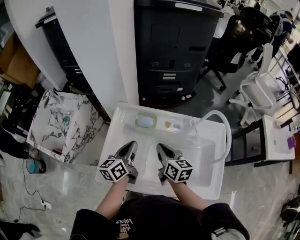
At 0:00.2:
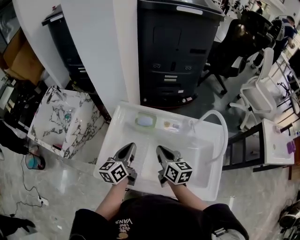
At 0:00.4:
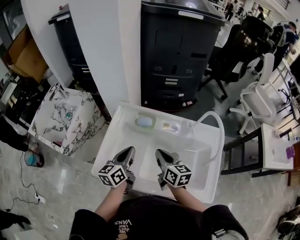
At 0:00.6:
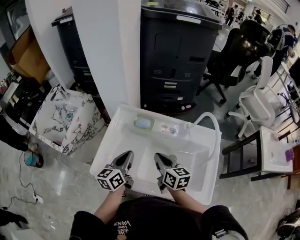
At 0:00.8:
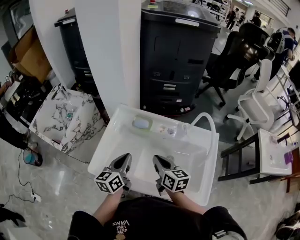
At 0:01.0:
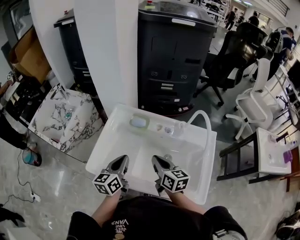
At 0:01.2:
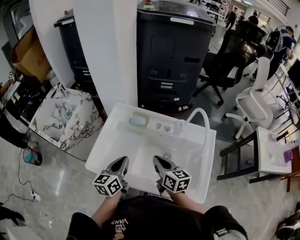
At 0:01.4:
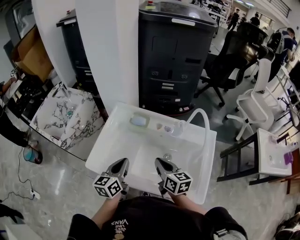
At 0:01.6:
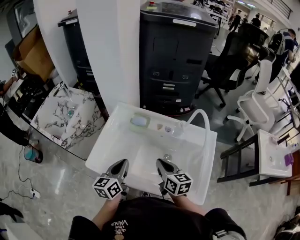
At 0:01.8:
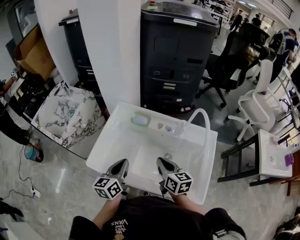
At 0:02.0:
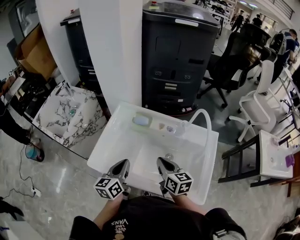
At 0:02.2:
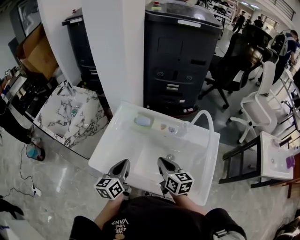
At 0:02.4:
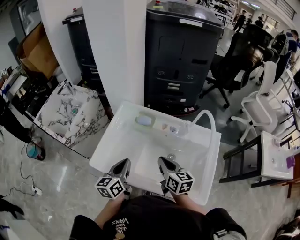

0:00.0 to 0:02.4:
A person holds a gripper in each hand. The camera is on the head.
0:00.0 to 0:01.2: The two grippers go approximately 10 cm backward.
0:01.2 to 0:02.4: There are only small adjustments of the grippers.

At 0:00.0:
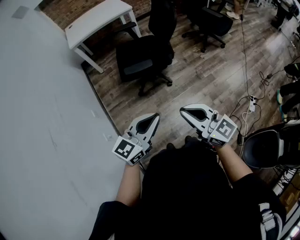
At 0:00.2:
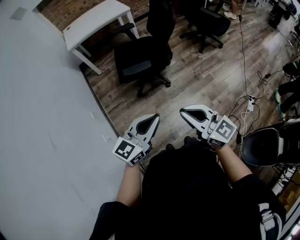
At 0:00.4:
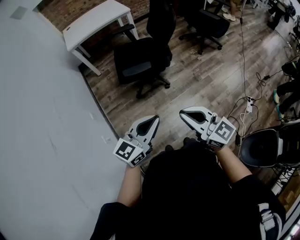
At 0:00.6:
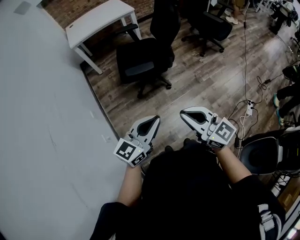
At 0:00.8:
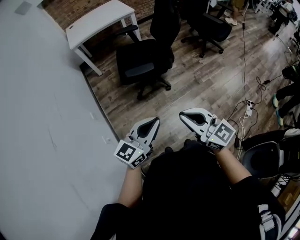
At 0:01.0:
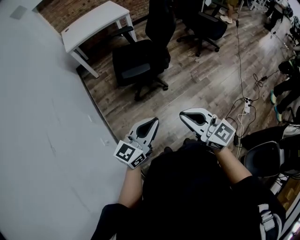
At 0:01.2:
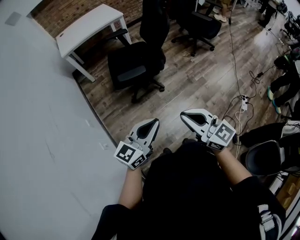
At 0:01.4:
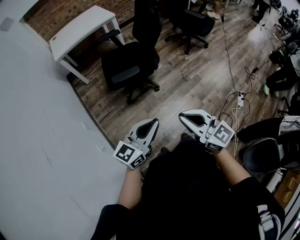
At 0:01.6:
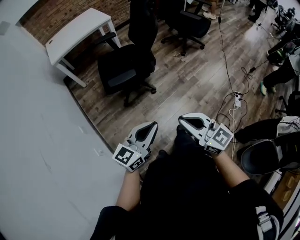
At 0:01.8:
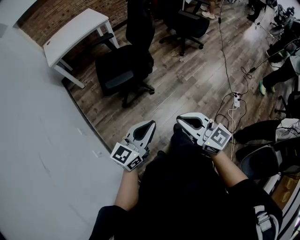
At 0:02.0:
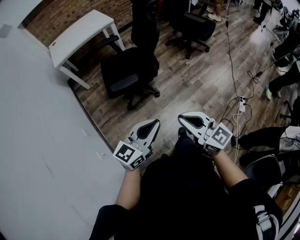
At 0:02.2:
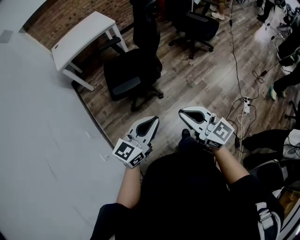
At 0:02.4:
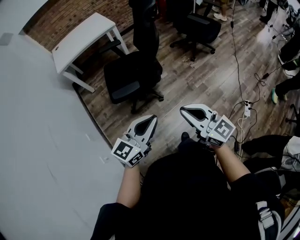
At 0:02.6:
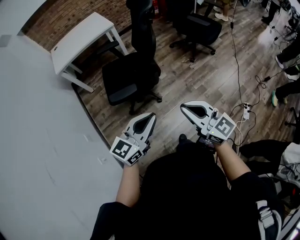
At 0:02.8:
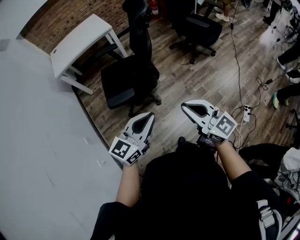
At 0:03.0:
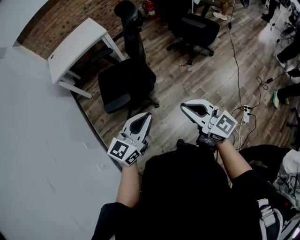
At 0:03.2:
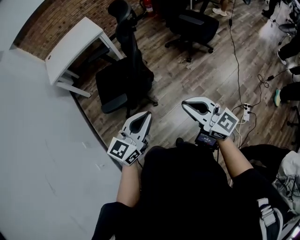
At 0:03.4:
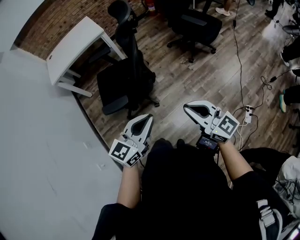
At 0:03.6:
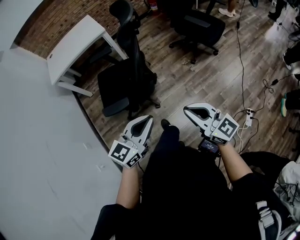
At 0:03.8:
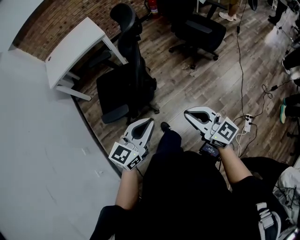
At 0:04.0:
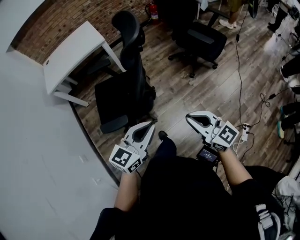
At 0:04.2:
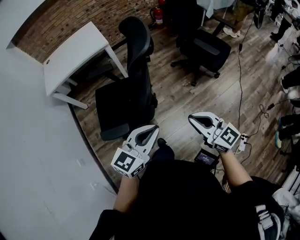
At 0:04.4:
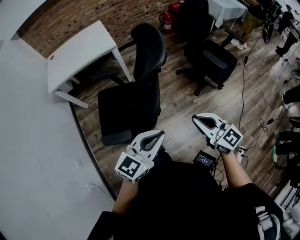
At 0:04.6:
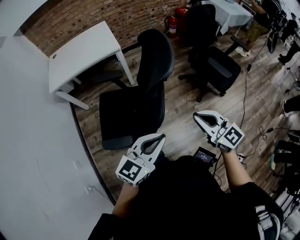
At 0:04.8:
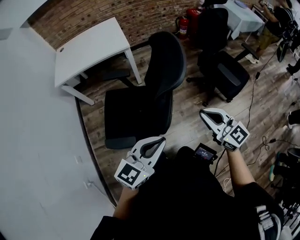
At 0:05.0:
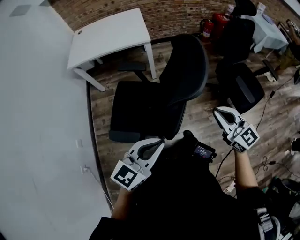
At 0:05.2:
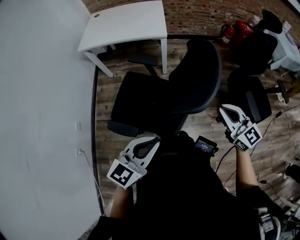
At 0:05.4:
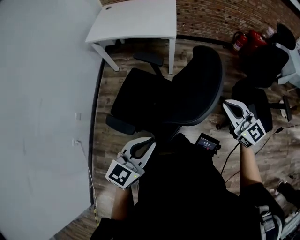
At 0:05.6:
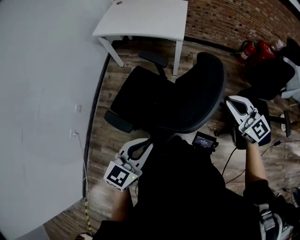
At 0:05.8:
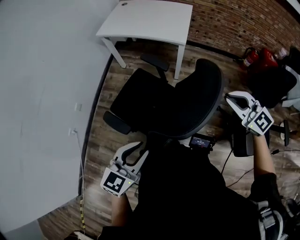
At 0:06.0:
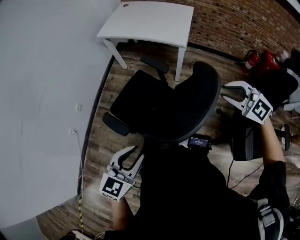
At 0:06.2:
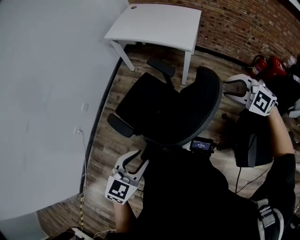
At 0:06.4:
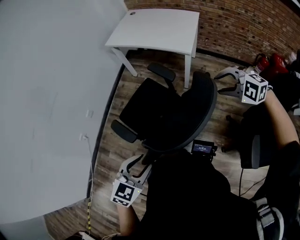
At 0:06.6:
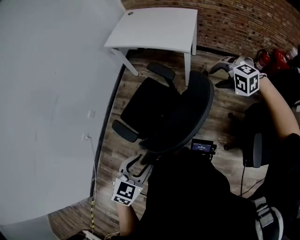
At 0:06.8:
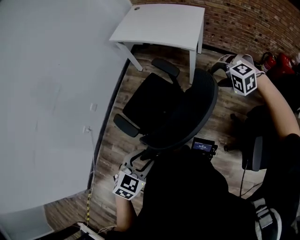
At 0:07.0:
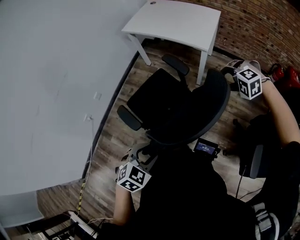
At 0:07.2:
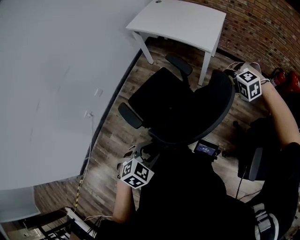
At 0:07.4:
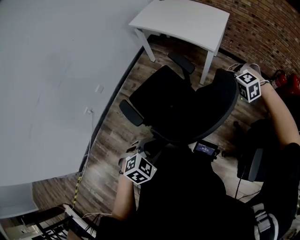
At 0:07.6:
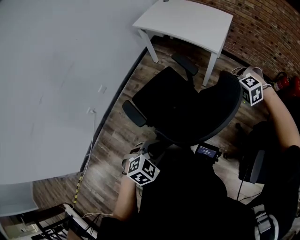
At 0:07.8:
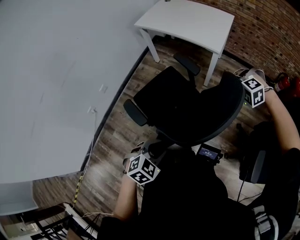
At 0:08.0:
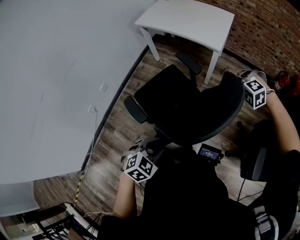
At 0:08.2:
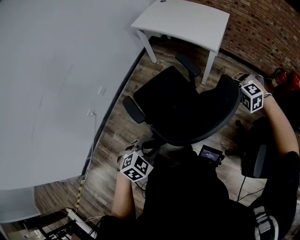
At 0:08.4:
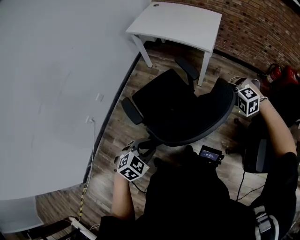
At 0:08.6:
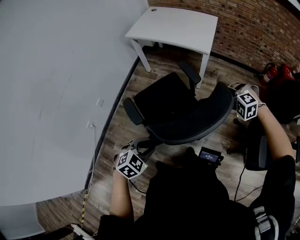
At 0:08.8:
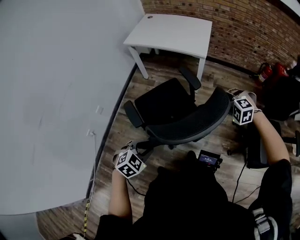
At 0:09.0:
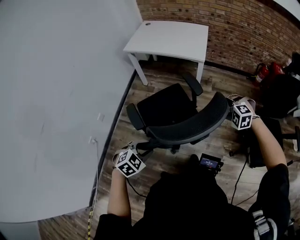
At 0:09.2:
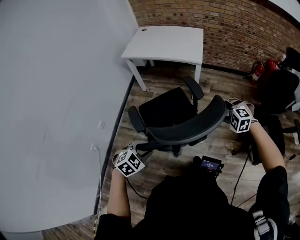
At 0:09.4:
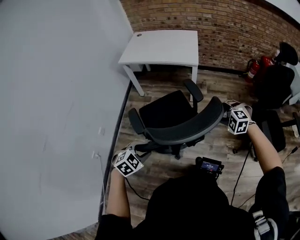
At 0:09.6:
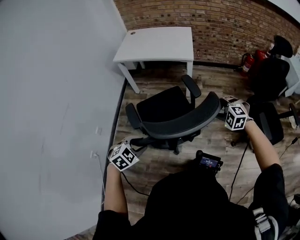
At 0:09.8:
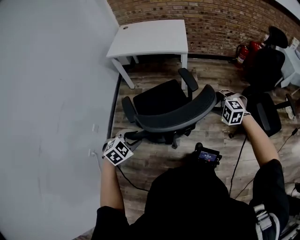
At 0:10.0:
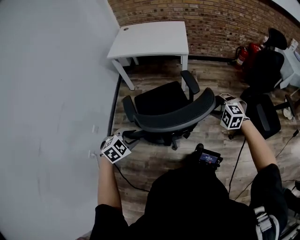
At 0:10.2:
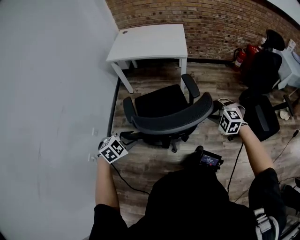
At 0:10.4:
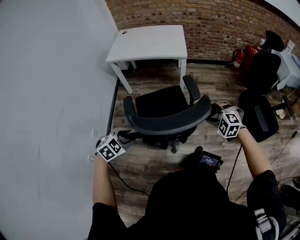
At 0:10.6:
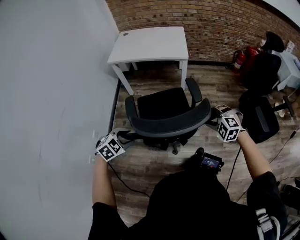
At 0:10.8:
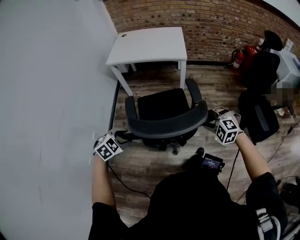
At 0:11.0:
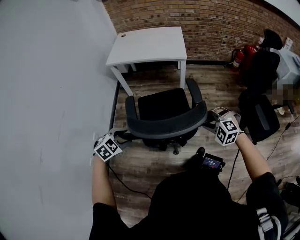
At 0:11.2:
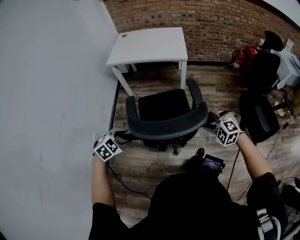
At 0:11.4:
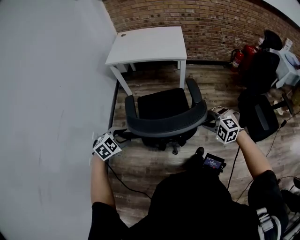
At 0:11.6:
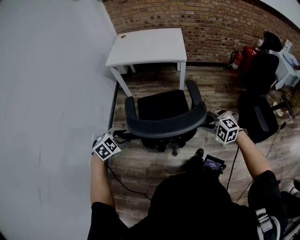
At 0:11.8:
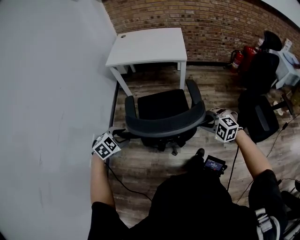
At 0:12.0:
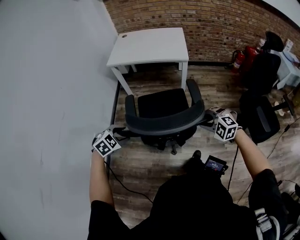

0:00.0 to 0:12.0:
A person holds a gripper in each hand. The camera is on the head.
0:00.0 to 0:01.6: There are only small adjustments of the grippers.
0:01.6 to 0:03.0: The grippers both shift forward and to the right by approximately 30 cm.
0:03.0 to 0:04.4: The grippers both shift forward by about 30 cm.
0:04.4 to 0:06.0: The right gripper moves roughly 50 cm, changes its angle by roughly 70 degrees, and opens up. Meanwhile the left gripper shifts by roughly 15 cm, and changes its angle by some 60 degrees.
0:06.0 to 0:07.6: The right gripper is displaced downward and forward by roughly 15 cm, and points its fingers some 40 degrees further downward. The left gripper goes roughly 10 cm downward and to the right, and angles its fingers downward, by roughly 30 degrees.
0:07.6 to 0:09.0: The right gripper travels backward and to the left by approximately 15 cm, and turns by some 30 degrees, while the left gripper travels to the left by about 20 cm.
0:09.0 to 0:10.4: The right gripper is displaced backward and to the left by some 15 cm, and swivels roughly 20 degrees. Meanwhile the left gripper heads to the left, covering roughly 15 cm.
0:10.4 to 0:12.0: The left gripper heads forward and to the left, covering approximately 10 cm; the right gripper shifts roughly 5 cm to the left.

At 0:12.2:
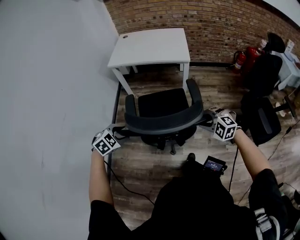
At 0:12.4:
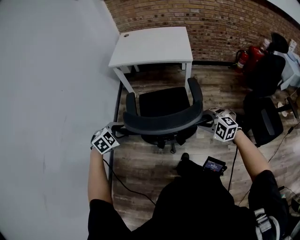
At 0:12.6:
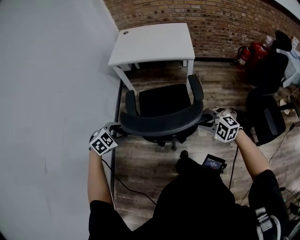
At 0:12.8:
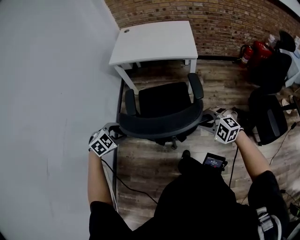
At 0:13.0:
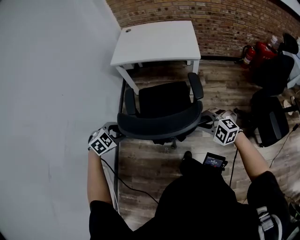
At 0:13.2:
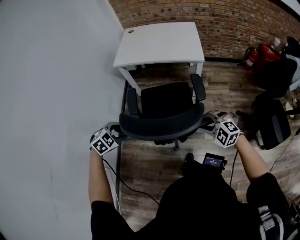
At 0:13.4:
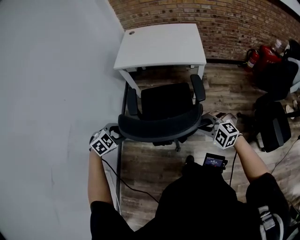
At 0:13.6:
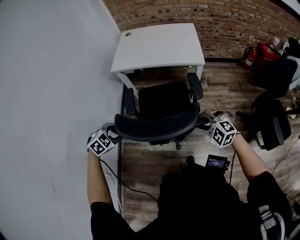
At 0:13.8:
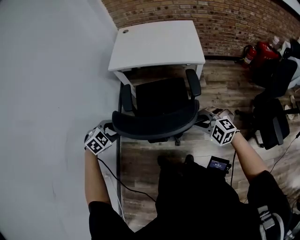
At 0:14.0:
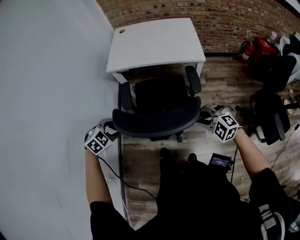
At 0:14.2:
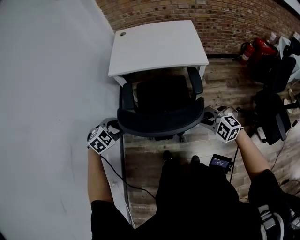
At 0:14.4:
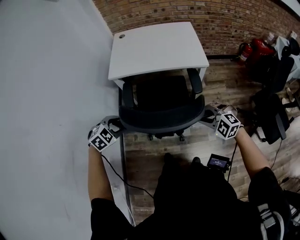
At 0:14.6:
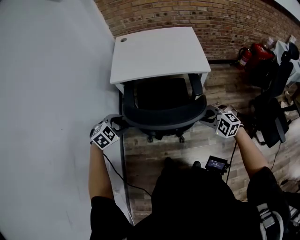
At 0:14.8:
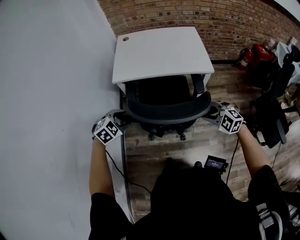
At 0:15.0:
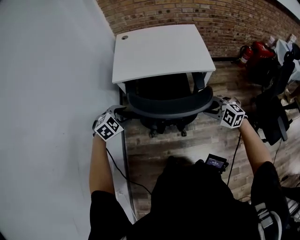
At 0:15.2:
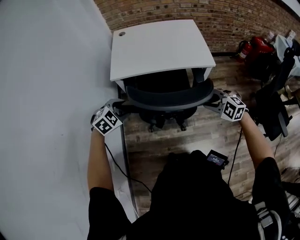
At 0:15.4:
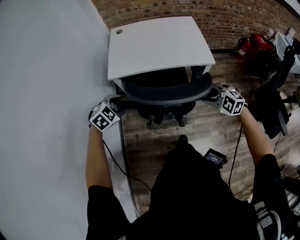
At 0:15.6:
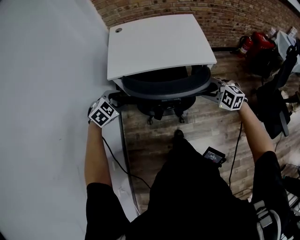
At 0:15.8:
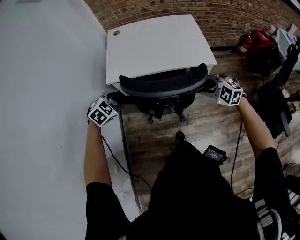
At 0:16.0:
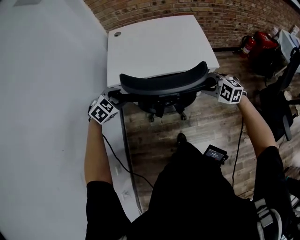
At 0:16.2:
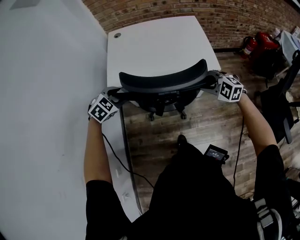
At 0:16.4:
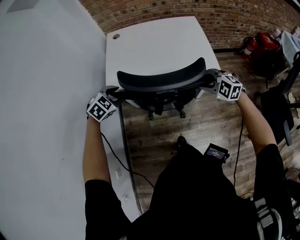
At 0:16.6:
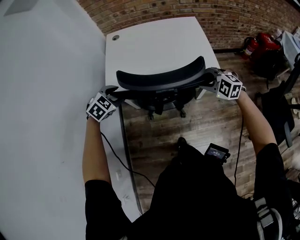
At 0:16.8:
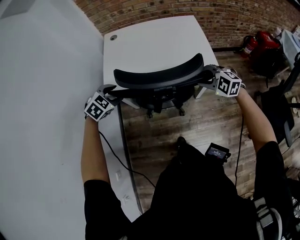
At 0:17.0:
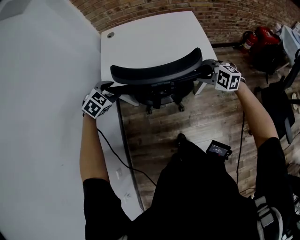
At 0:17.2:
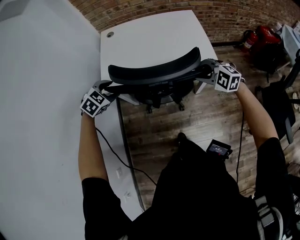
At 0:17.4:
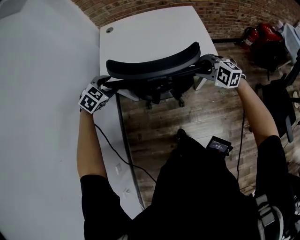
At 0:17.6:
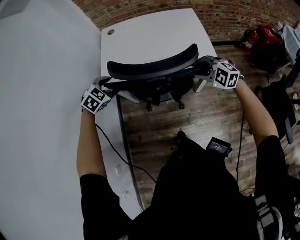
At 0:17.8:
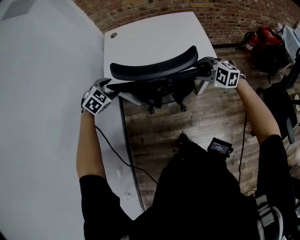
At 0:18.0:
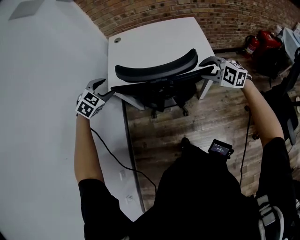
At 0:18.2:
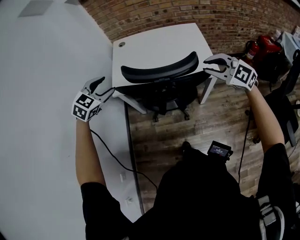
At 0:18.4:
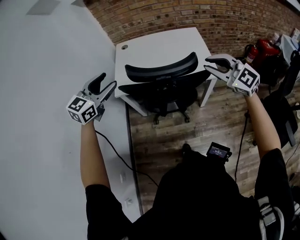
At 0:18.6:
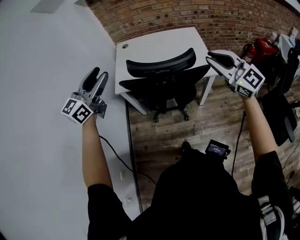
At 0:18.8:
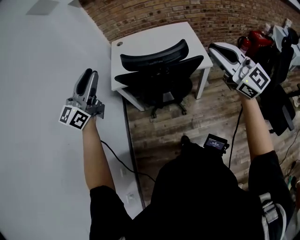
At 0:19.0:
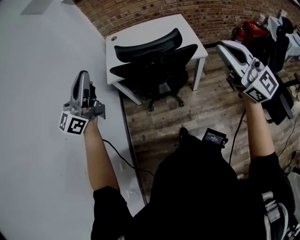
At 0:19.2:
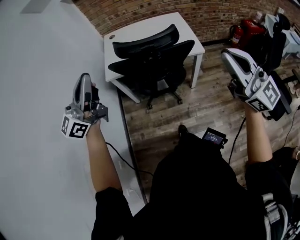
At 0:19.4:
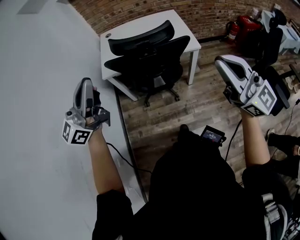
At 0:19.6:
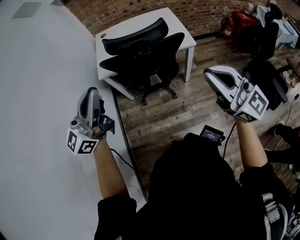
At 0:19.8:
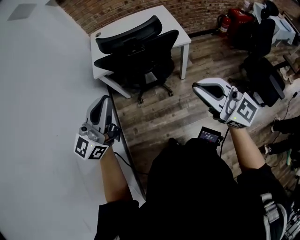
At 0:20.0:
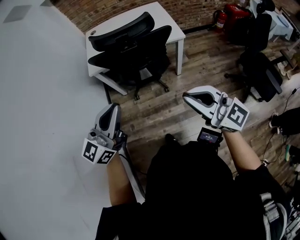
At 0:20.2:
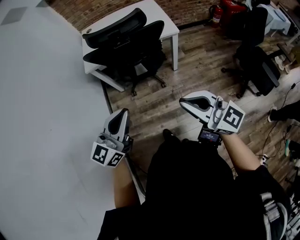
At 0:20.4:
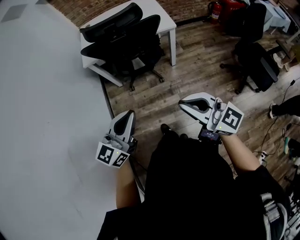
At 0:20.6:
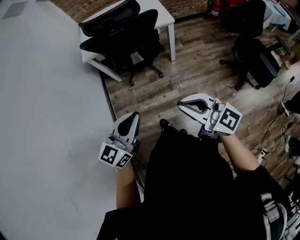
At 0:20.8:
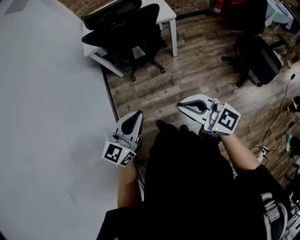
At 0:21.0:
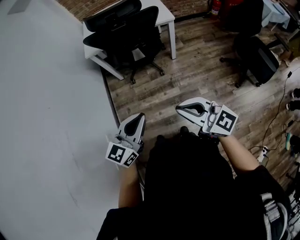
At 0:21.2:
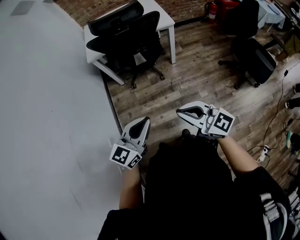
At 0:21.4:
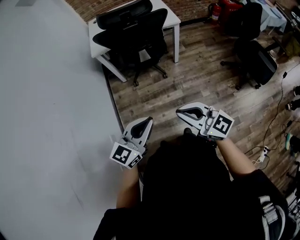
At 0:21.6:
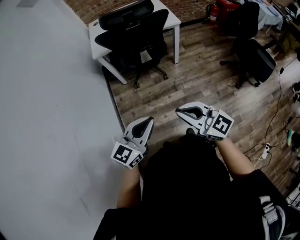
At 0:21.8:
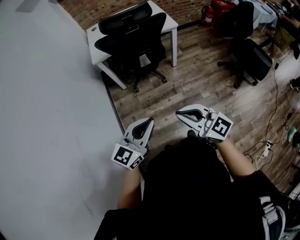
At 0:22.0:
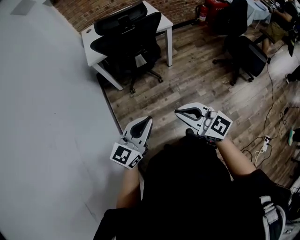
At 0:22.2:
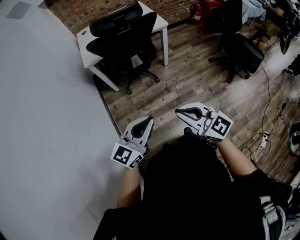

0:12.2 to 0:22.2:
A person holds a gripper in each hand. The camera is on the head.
0:12.2 to 0:13.6: Both grippers travel together forward and to the left, approximately 25 cm.
0:13.6 to 0:15.0: The right gripper moves forward and to the left, roughly 20 cm. The left gripper moves forward, approximately 20 cm.
0:15.0 to 0:16.4: Both grippers move forward, roughly 20 cm.
0:16.4 to 0:18.0: The right gripper heads upward, covering approximately 5 cm. Meanwhile the left gripper shifts approximately 10 cm upward and forward.
0:18.0 to 0:19.4: Both grippers move backward and upward, approximately 40 cm. The left gripper tips its fingers upward by approximately 80 degrees, and closes up. Meanwhile the right gripper tips its fingers upward by some 60 degrees, and closes its fingers.
0:19.4 to 0:20.8: The right gripper travels backward and downward by roughly 30 cm, and rotates approximately 30 degrees, while the left gripper goes some 40 cm backward, downward and to the right, and tilts its fingers roughly 30 degrees downward.
0:20.8 to 0:22.2: Both grippers travel together to the left, approximately 15 cm.
